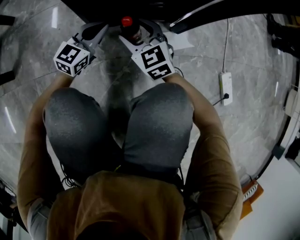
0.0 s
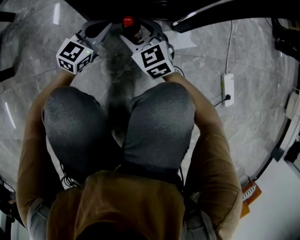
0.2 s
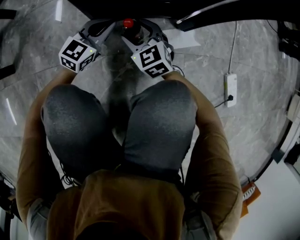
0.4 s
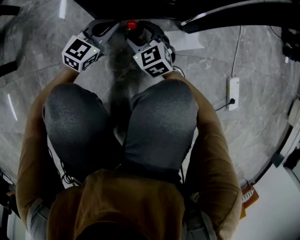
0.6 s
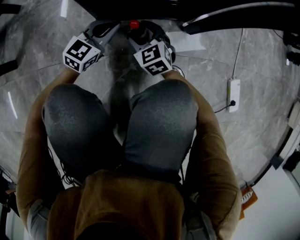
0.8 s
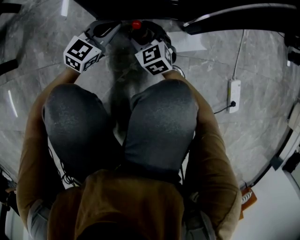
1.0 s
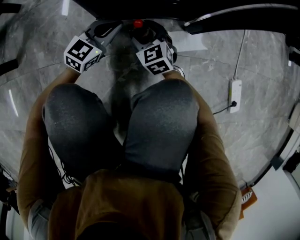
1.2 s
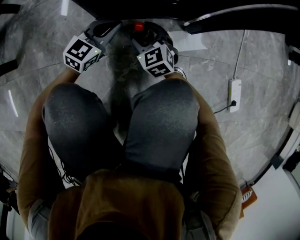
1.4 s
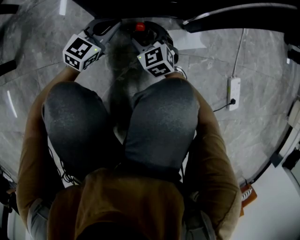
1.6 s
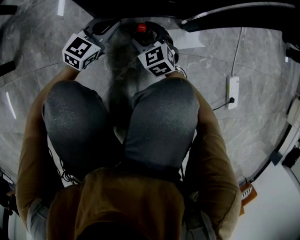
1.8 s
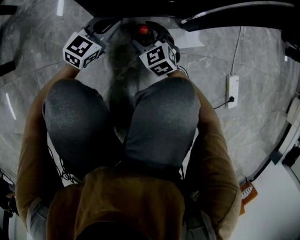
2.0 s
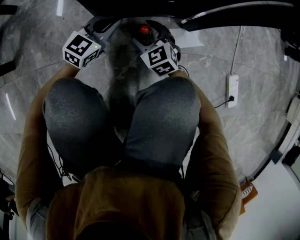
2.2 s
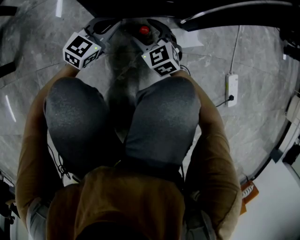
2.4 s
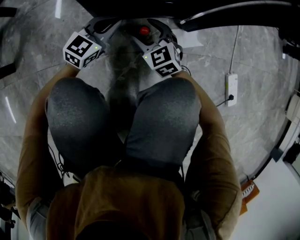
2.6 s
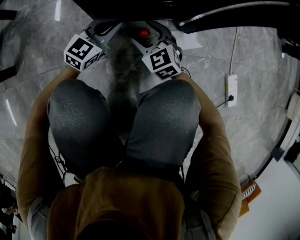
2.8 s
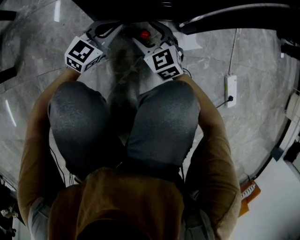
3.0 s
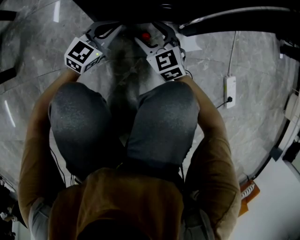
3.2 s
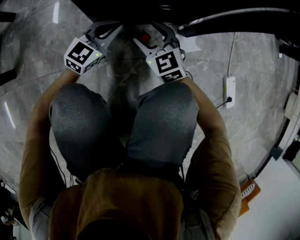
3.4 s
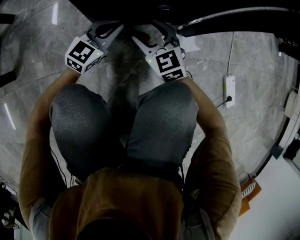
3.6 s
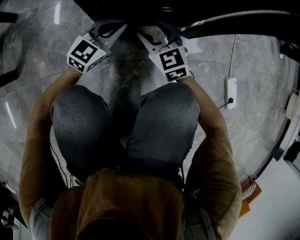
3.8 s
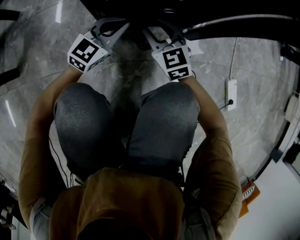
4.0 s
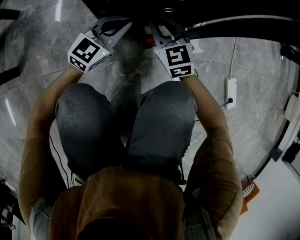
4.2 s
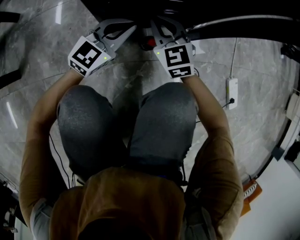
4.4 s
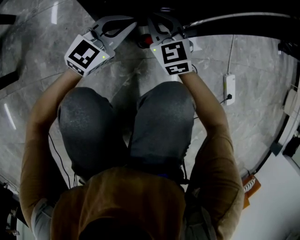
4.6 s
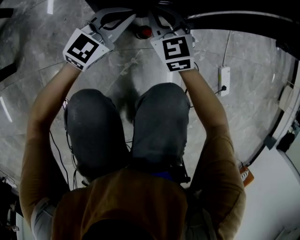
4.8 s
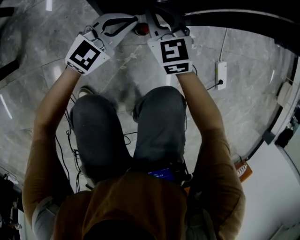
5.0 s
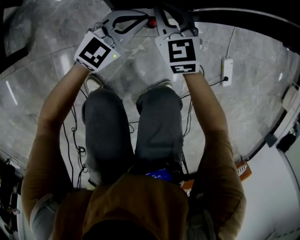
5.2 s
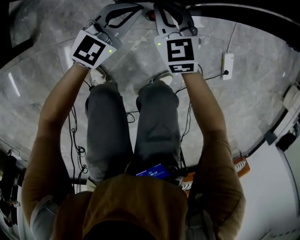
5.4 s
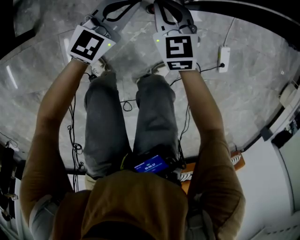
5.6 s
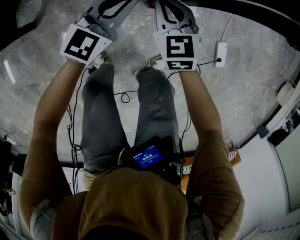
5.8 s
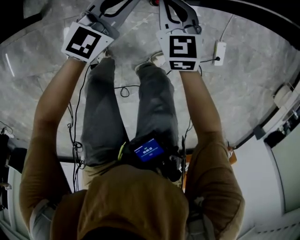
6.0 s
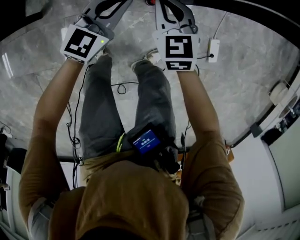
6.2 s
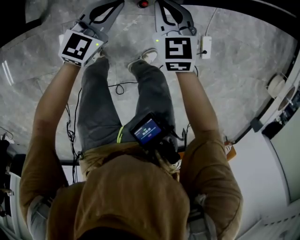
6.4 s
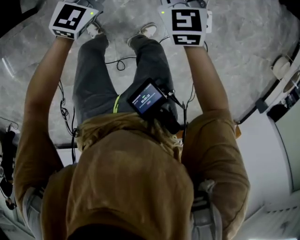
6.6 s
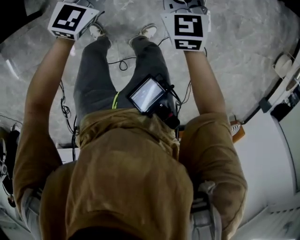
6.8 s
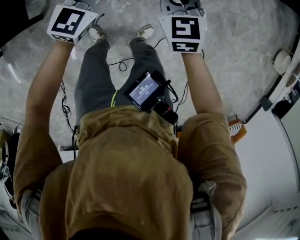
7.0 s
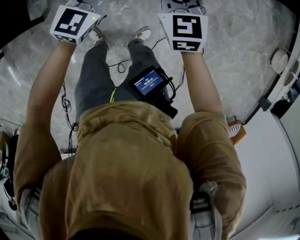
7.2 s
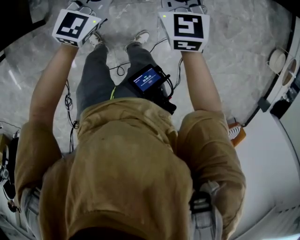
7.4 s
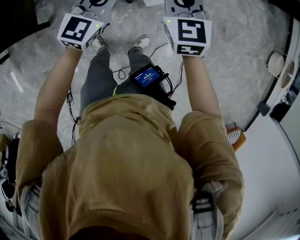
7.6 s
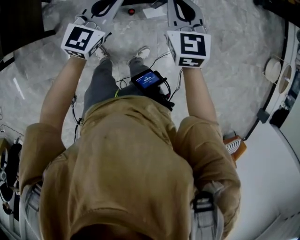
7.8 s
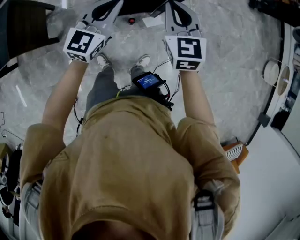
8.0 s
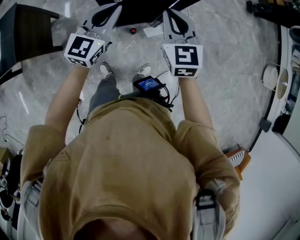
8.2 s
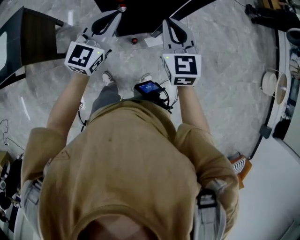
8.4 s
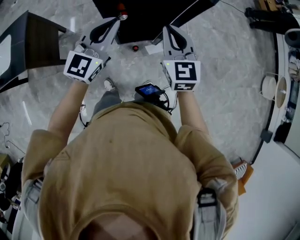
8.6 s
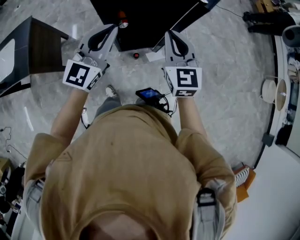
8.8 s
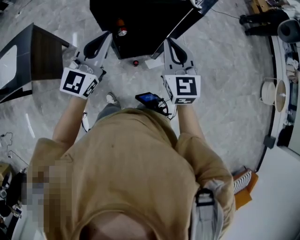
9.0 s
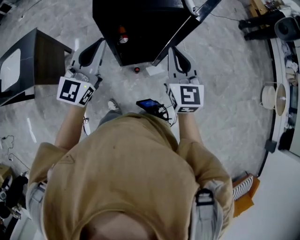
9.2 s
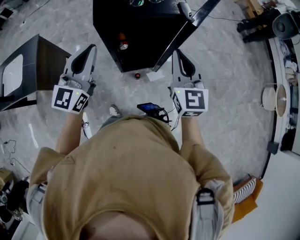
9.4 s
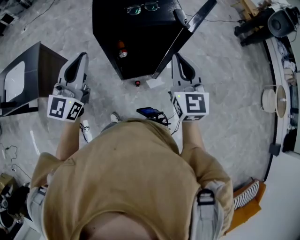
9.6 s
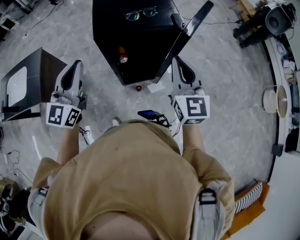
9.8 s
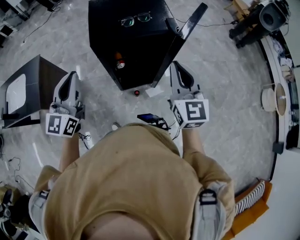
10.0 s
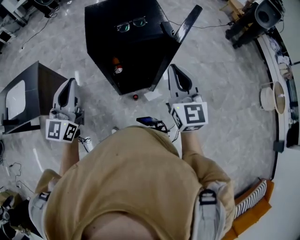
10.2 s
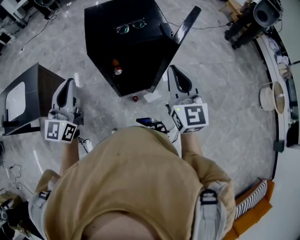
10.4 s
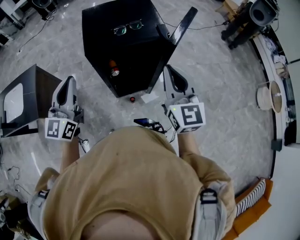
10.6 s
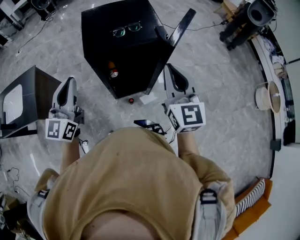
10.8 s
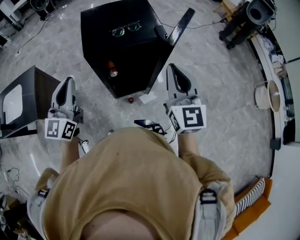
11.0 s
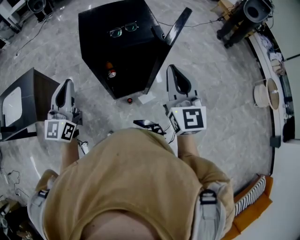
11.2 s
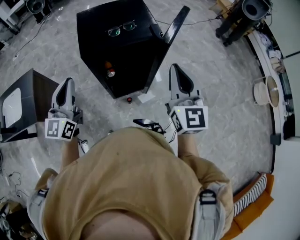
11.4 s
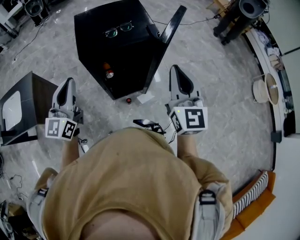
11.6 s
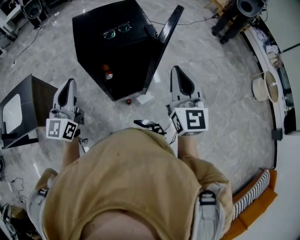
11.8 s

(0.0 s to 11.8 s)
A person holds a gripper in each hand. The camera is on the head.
0.0 s - 1.4 s: The right gripper travels downward by about 10 cm. Meanwhile the left gripper heads downward, covering approximately 5 cm.
1.4 s - 3.0 s: The right gripper travels upward by approximately 5 cm.
3.0 s - 4.4 s: The right gripper moves upward and forward, some 10 cm, and closes its fingers; the left gripper is displaced upward by approximately 5 cm.
4.4 s - 6.0 s: The grippers both shift upward by approximately 30 cm.
6.0 s - 7.4 s: Both grippers travel together upward, about 40 cm.
7.4 s - 8.8 s: Both grippers travel together upward, some 25 cm.
8.8 s - 10.4 s: The right gripper heads upward and to the right, covering some 15 cm. The left gripper moves to the left and upward, approximately 15 cm.
10.4 s - 11.8 s: The right gripper ends up some 5 cm from where it was.

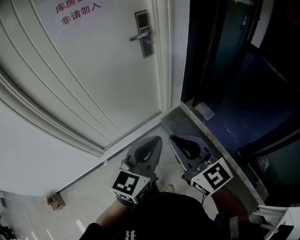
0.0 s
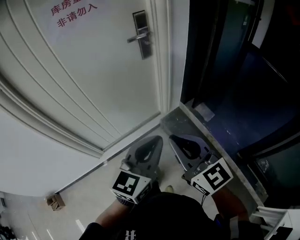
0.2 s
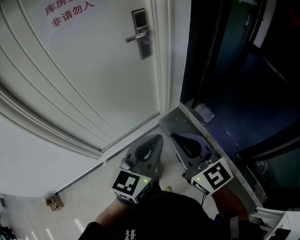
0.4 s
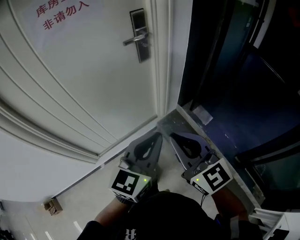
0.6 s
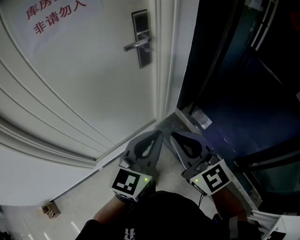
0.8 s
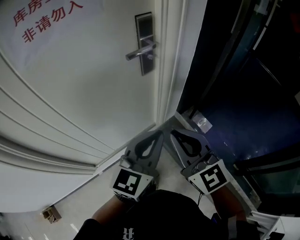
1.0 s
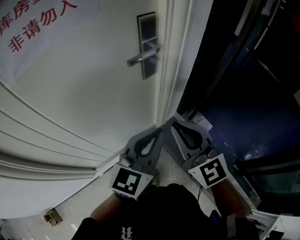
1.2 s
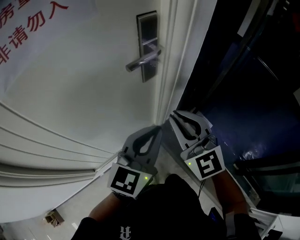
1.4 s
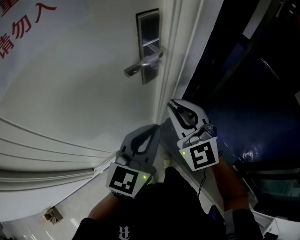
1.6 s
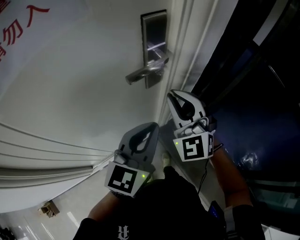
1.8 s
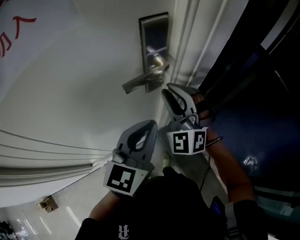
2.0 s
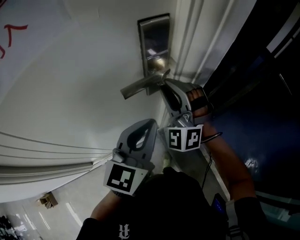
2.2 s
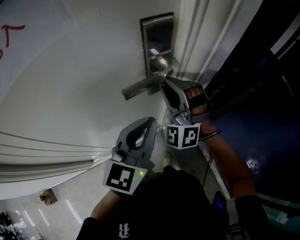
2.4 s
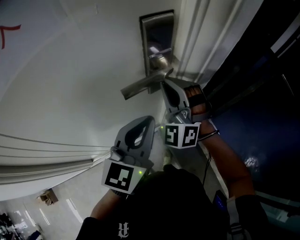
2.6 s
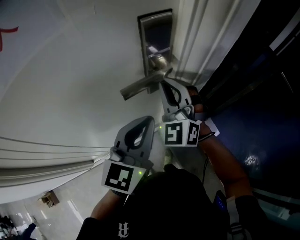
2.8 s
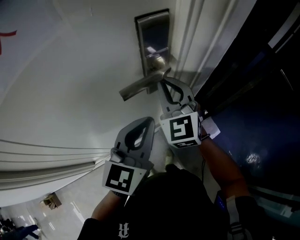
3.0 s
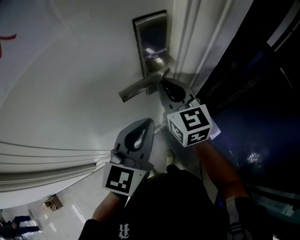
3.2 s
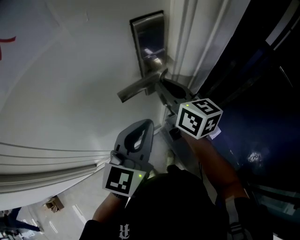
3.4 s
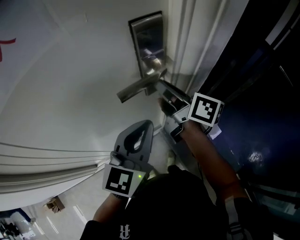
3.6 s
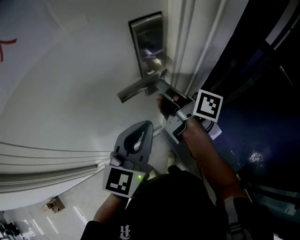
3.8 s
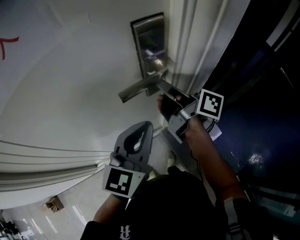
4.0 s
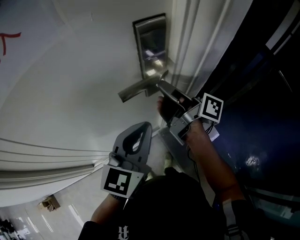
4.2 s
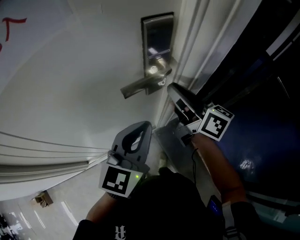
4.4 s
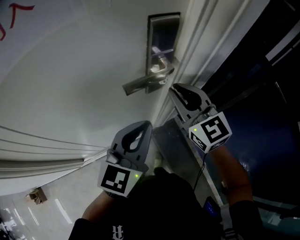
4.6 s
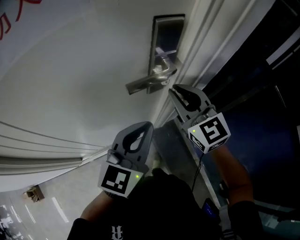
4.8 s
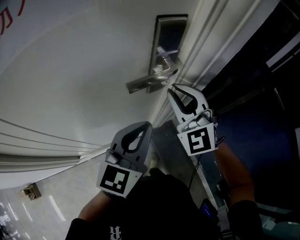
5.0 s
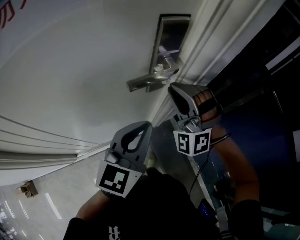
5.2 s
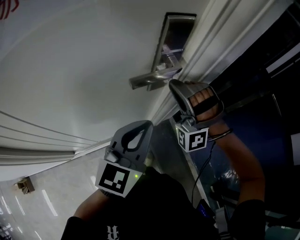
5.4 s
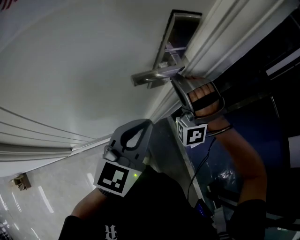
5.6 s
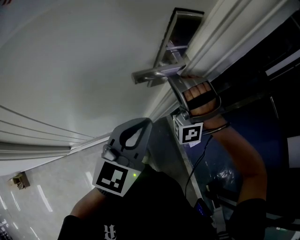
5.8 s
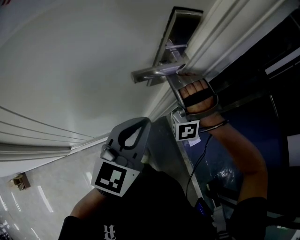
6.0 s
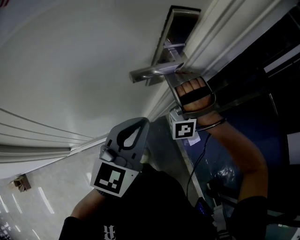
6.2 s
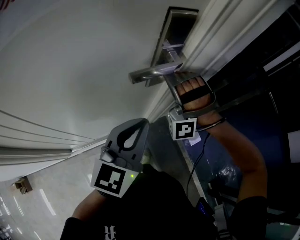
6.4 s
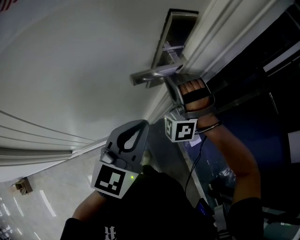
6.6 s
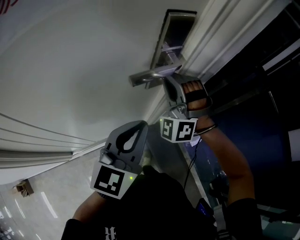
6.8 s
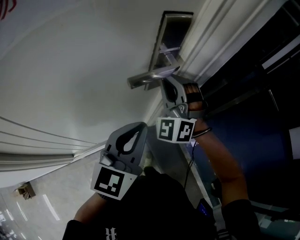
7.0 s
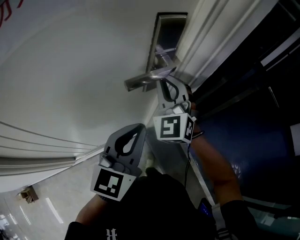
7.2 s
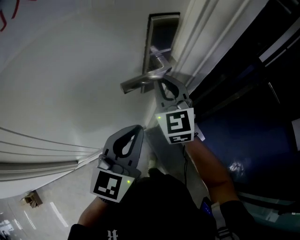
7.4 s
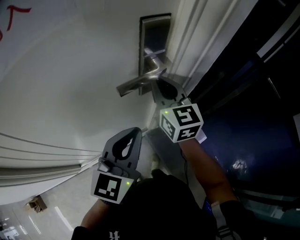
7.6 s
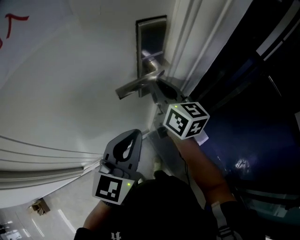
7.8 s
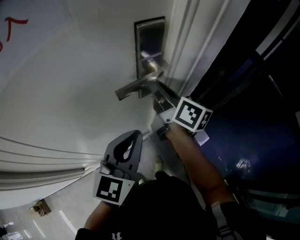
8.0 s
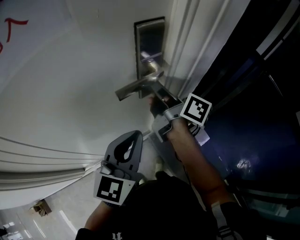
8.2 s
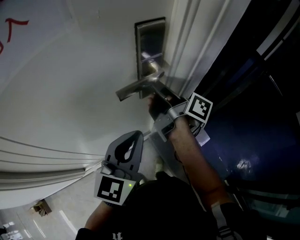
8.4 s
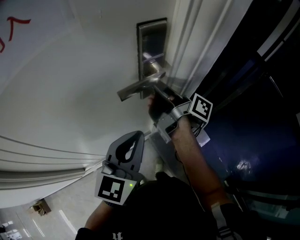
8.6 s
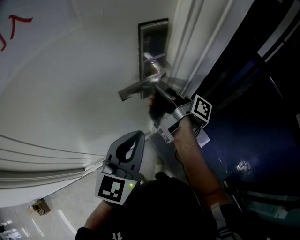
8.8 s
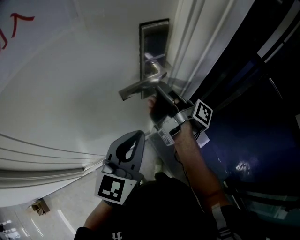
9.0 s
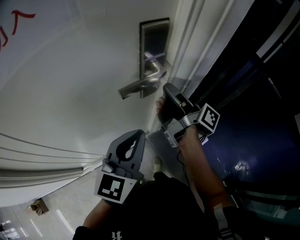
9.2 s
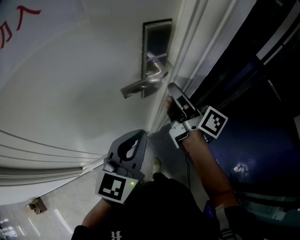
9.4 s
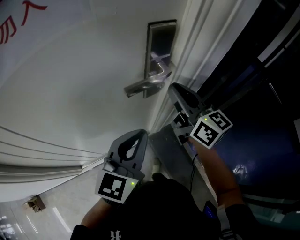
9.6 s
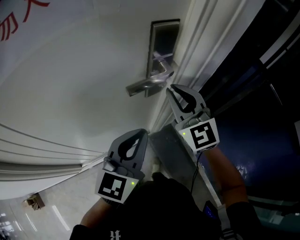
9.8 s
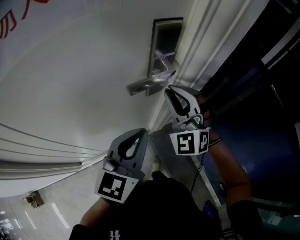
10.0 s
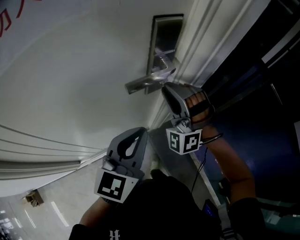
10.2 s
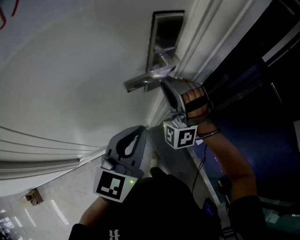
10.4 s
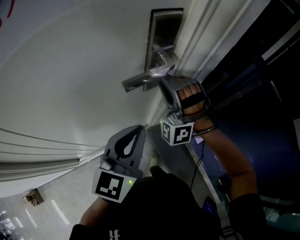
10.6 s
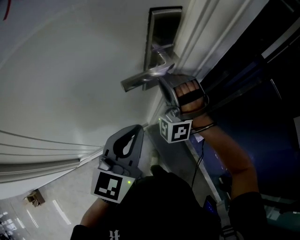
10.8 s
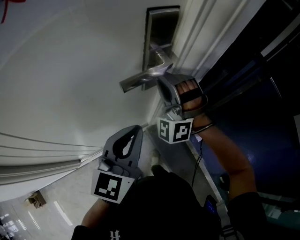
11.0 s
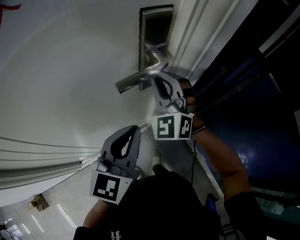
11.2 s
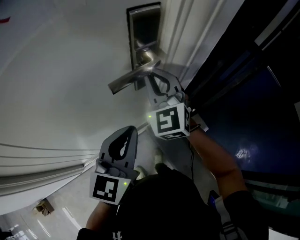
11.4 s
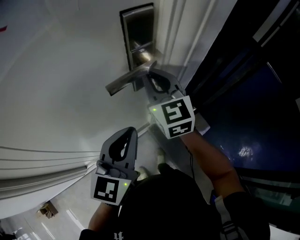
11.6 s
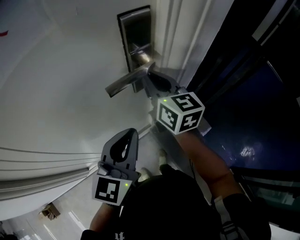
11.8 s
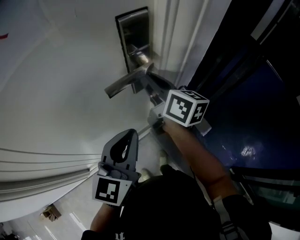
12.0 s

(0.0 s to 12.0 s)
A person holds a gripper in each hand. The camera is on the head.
0.0 s - 1.6 s: Both grippers move forward, roughly 40 cm. The right gripper turns by some 30 degrees.
1.6 s - 3.0 s: The left gripper moves forward, about 10 cm. Meanwhile the right gripper shifts some 15 cm forward.
3.0 s - 4.4 s: The right gripper twists roughly 60 degrees clockwise, seen from behind.
4.4 s - 6.0 s: The right gripper moves some 5 cm, and rotates around the line of its fingers by roughly 150 degrees, counterclockwise from behind.
6.0 s - 7.6 s: The right gripper rolls clockwise, seen from behind, by approximately 110 degrees.
7.6 s - 9.0 s: The right gripper twists approximately 90 degrees clockwise, seen from behind.
9.0 s - 10.4 s: The right gripper swivels about 180 degrees.
10.4 s - 12.0 s: The right gripper rotates around the line of its fingers by about 130 degrees, clockwise from behind.
